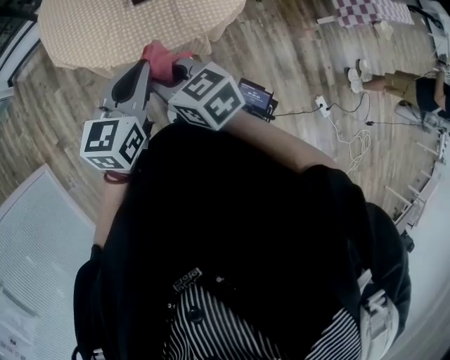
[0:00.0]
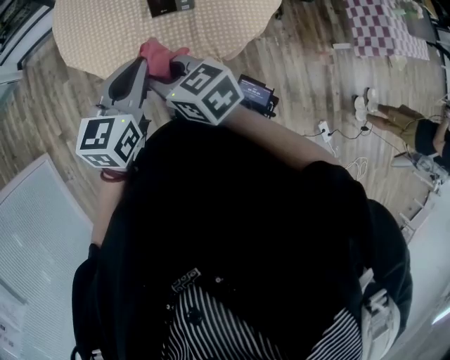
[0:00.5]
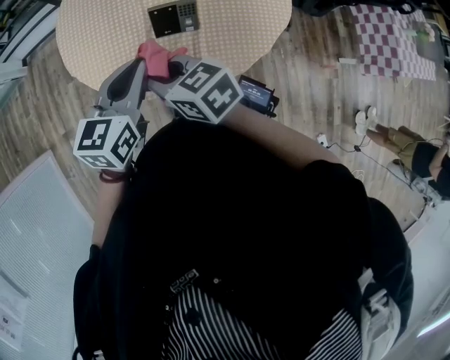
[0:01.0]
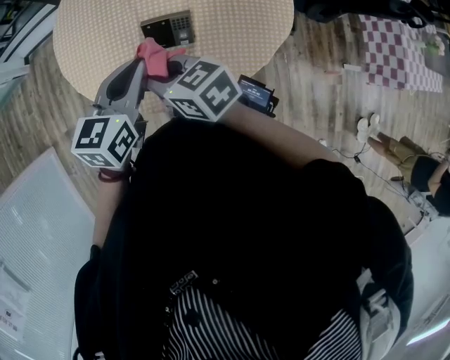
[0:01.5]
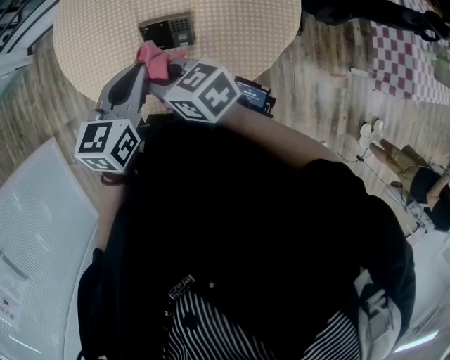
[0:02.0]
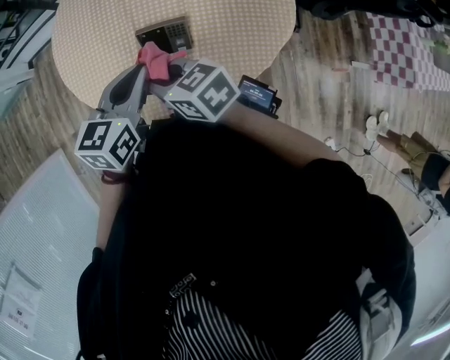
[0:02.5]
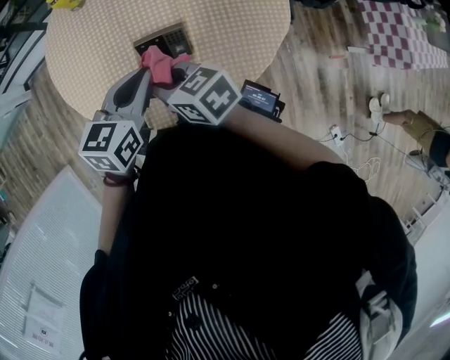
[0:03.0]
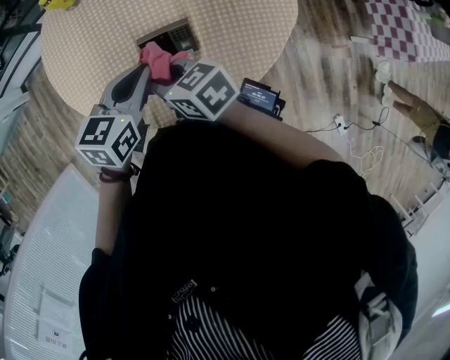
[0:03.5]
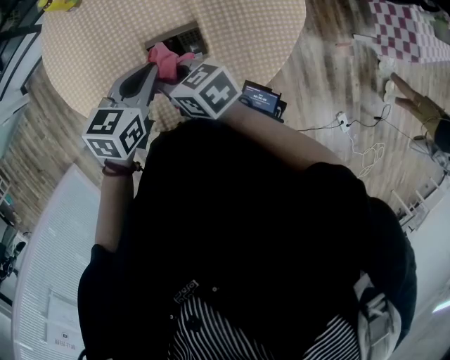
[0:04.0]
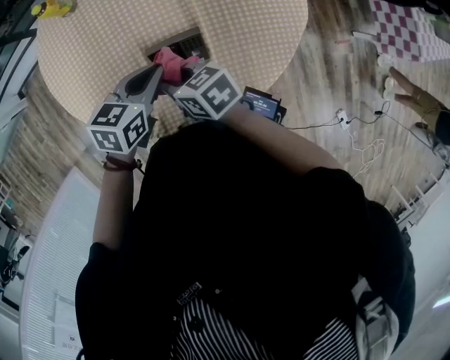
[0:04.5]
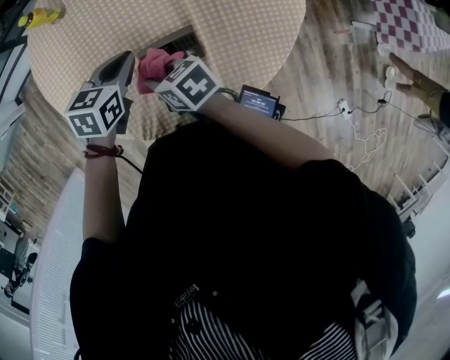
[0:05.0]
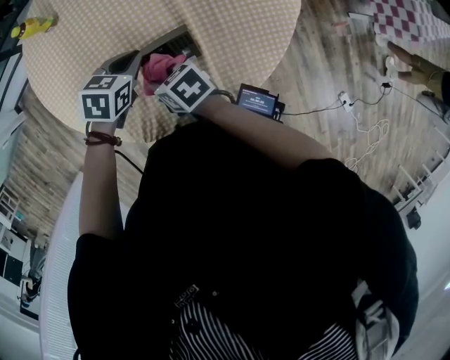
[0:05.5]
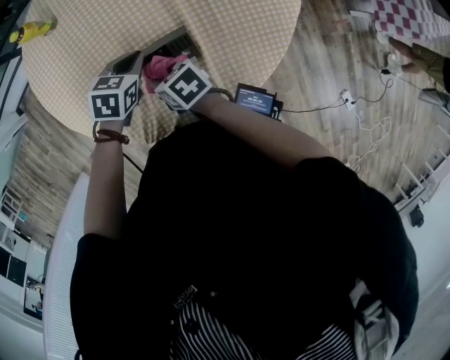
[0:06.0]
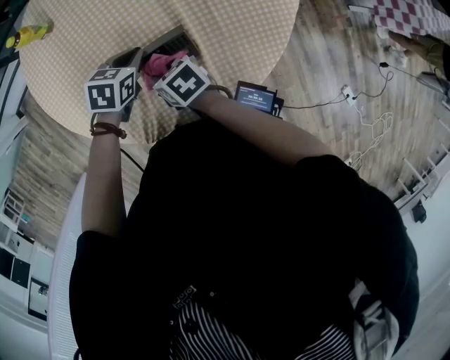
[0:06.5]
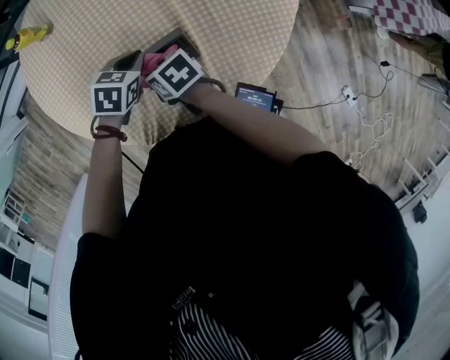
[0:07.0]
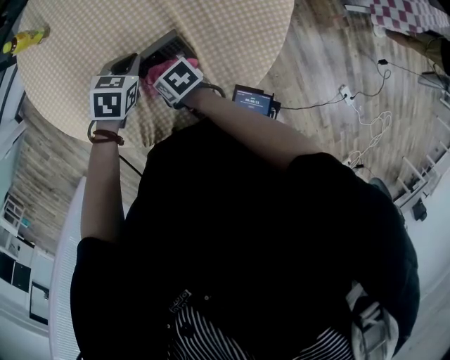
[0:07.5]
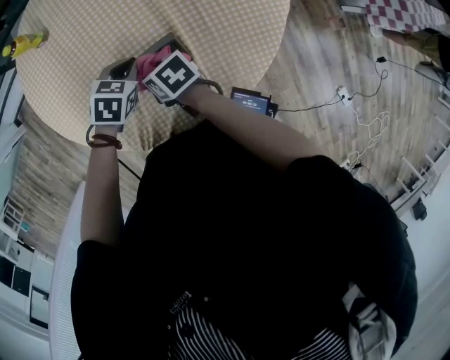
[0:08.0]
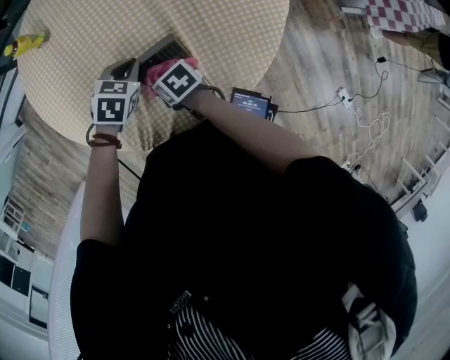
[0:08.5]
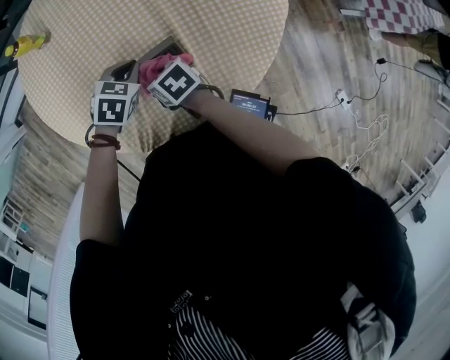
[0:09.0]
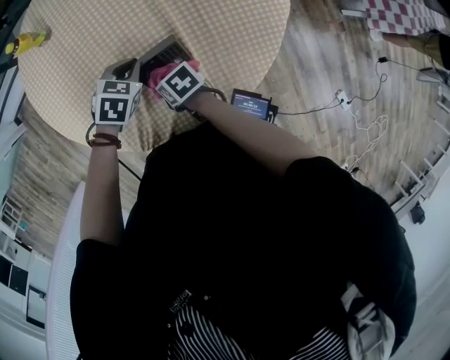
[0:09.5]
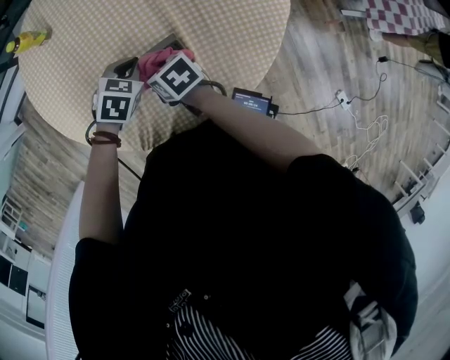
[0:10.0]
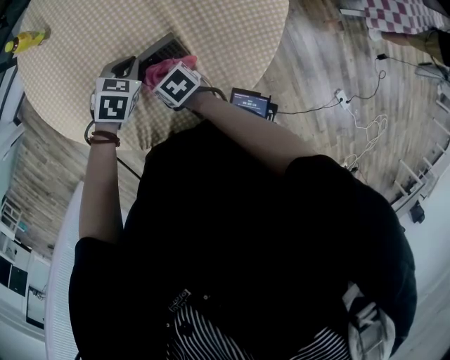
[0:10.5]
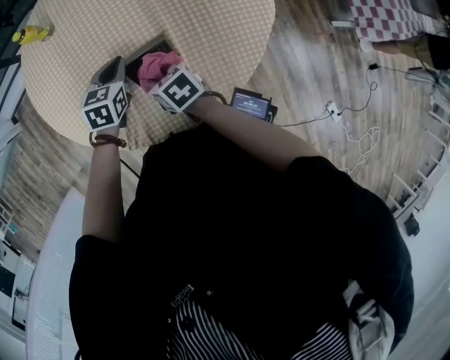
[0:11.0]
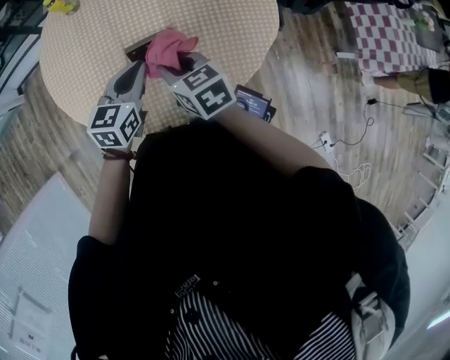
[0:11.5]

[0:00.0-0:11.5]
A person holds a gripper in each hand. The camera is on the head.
0:00.0 to 0:02.0: Both grippers move forward and to the right, roughly 35 cm. The right gripper turns by some 20 degrees.
0:02.0 to 0:04.0: The left gripper travels downward, forward and to the right by some 10 cm, and turns by roughly 20 degrees. Meanwhile the right gripper moves forward and downward, approximately 10 cm.
0:04.0 to 0:06.0: The grippers both shift downward by roughly 15 cm. The left gripper swivels approximately 20 degrees.
0:06.0 to 0:07.5: The right gripper moves downward, about 5 cm.
0:09.5 to 0:11.5: The left gripper shifts approximately 15 cm upward, and tips its fingers upward by approximately 40 degrees. The right gripper moves up and down over some 20 cm, changing direction 2 times, and swivels approximately 40 degrees.

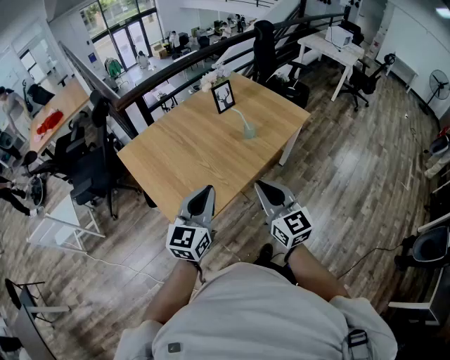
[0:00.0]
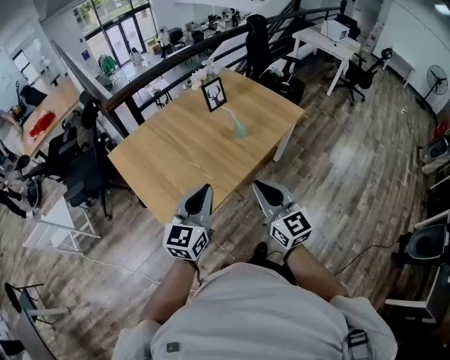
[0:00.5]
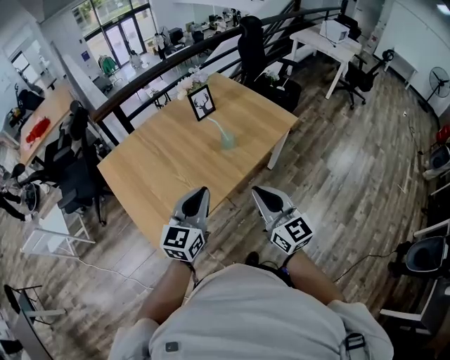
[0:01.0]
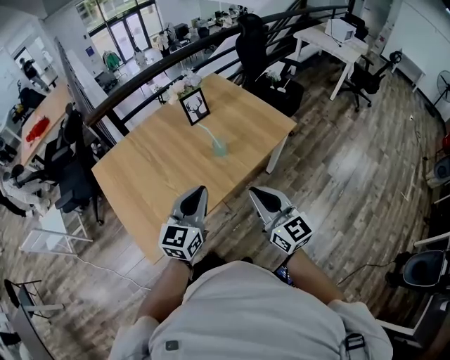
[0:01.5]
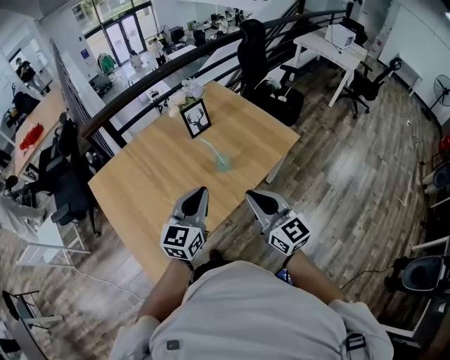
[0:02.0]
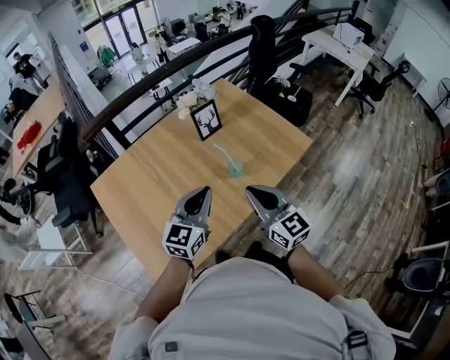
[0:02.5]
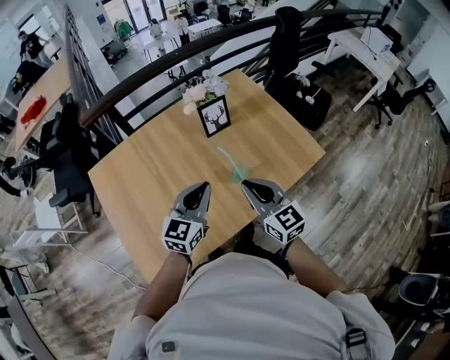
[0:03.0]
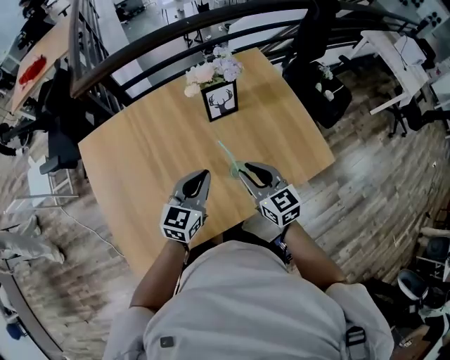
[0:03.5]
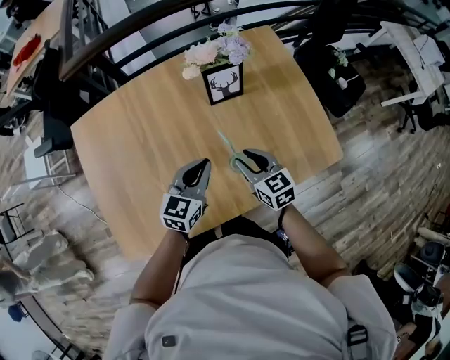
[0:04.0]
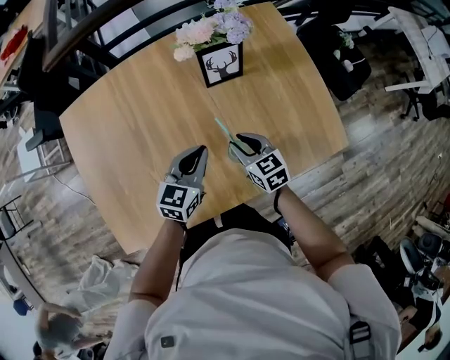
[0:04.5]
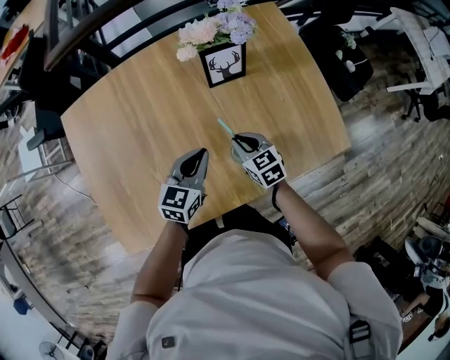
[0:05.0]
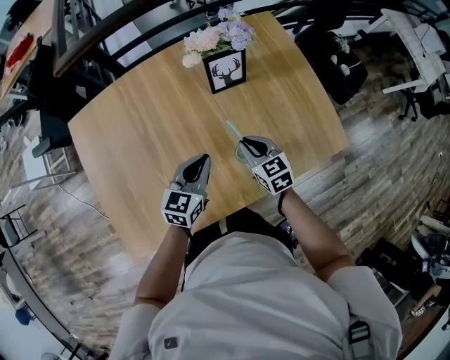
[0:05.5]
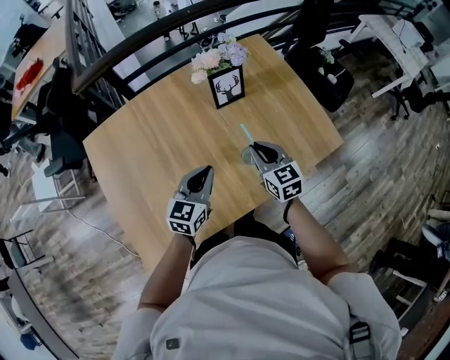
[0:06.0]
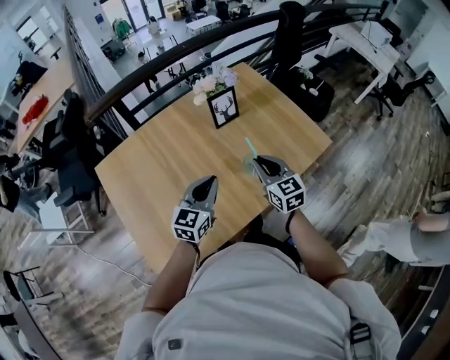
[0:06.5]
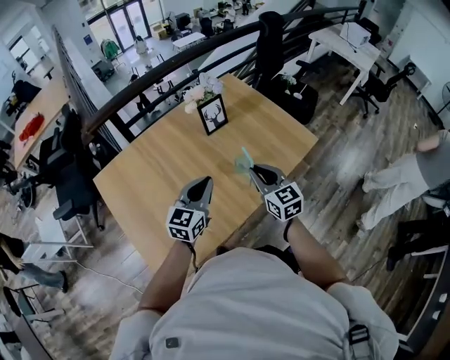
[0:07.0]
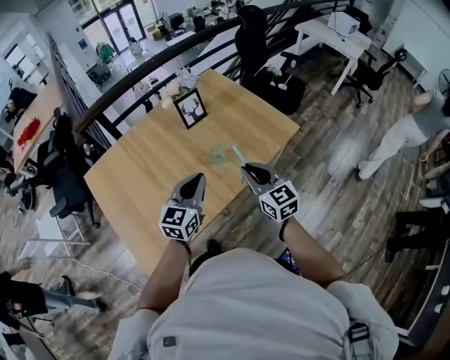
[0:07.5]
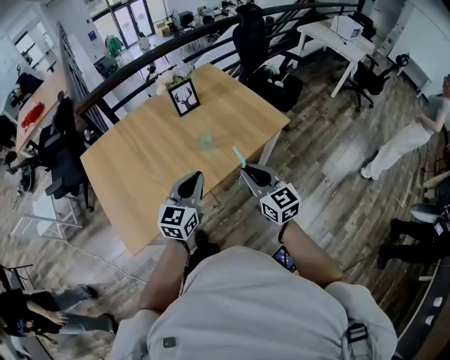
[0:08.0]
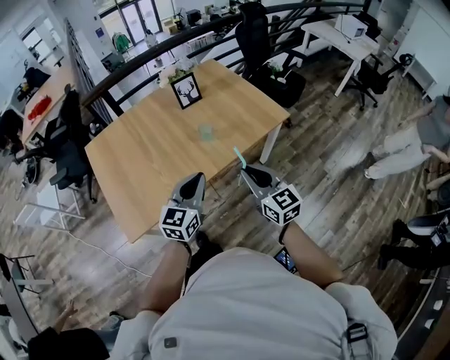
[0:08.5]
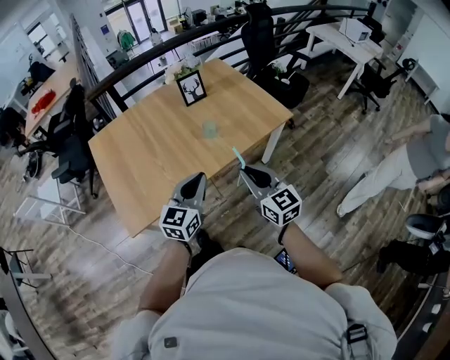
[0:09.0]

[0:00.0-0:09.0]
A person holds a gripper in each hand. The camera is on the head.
0:00.0 to 0:02.0: Both grippers travel together forward and to the right, approximately 30 cm.
0:02.0 to 0:04.5: Both grippers move forward and downward, about 40 cm. The right gripper tips its fingers downward by some 40 degrees, and opens. The left gripper swivels about 30 degrees.
0:04.5 to 0:07.0: The two grippers go some 25 cm upward and backward. The right gripper changes its angle by some 30 degrees. The left gripper turns by about 20 degrees.
0:07.0 to 0:09.0: Both grippers move backward and to the right, some 30 cm.

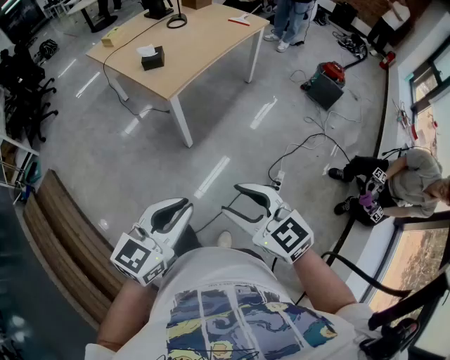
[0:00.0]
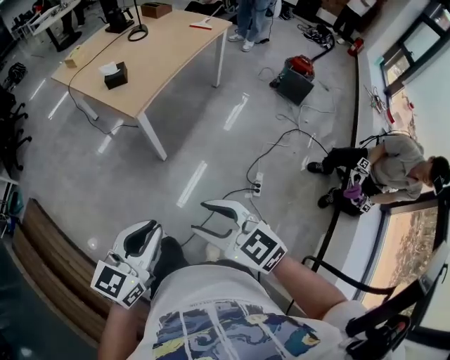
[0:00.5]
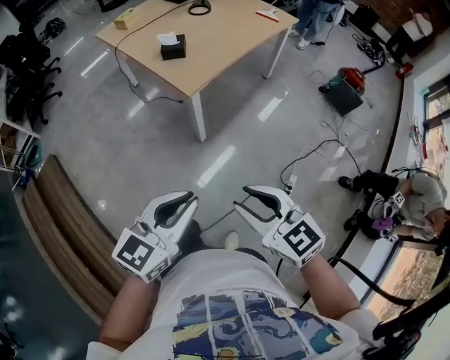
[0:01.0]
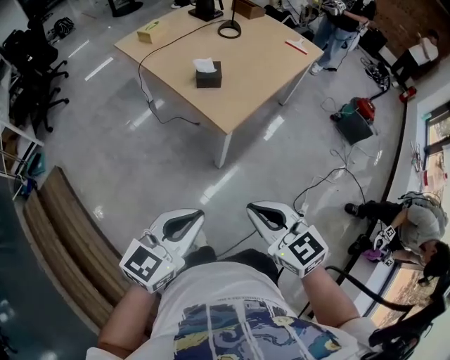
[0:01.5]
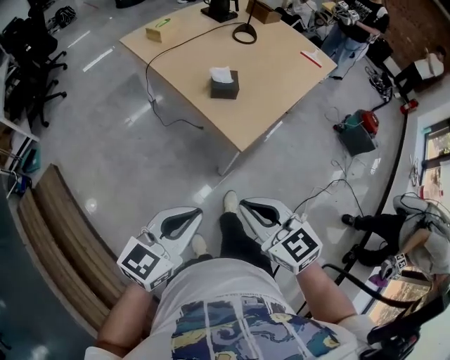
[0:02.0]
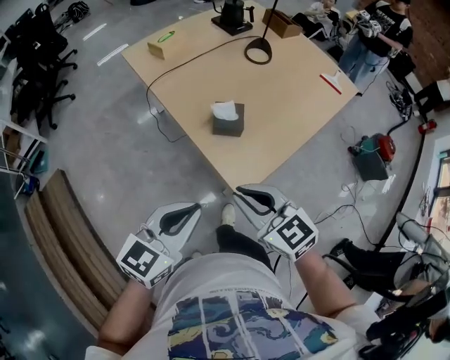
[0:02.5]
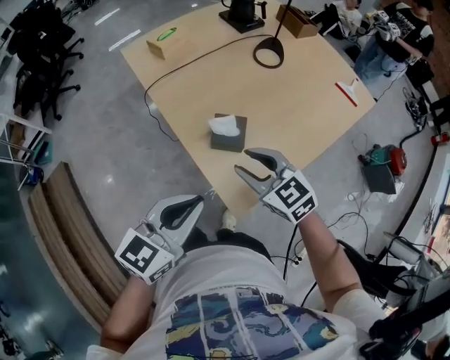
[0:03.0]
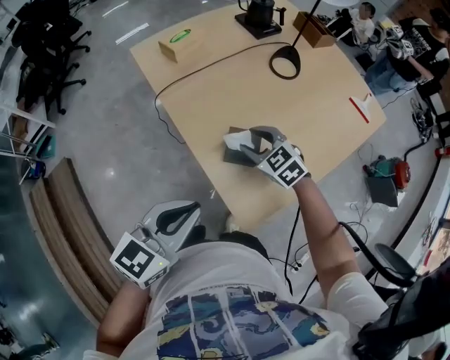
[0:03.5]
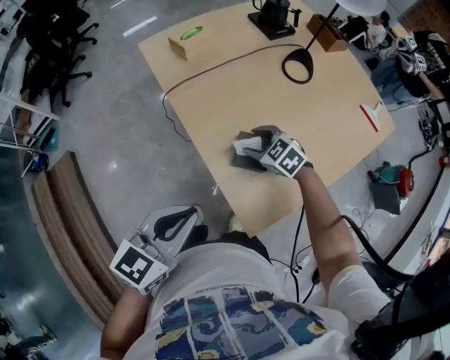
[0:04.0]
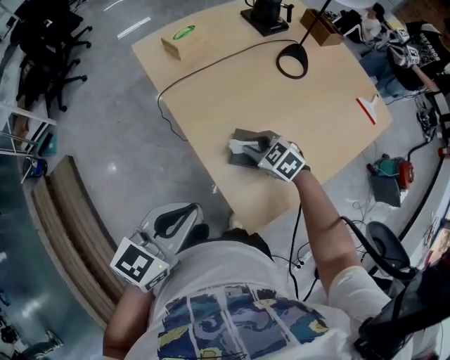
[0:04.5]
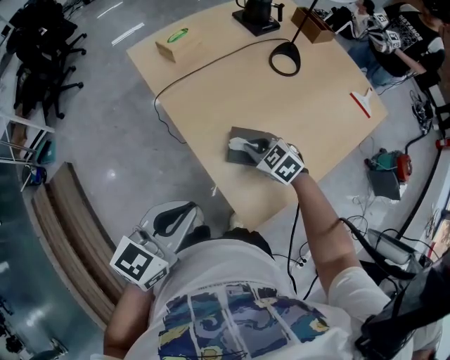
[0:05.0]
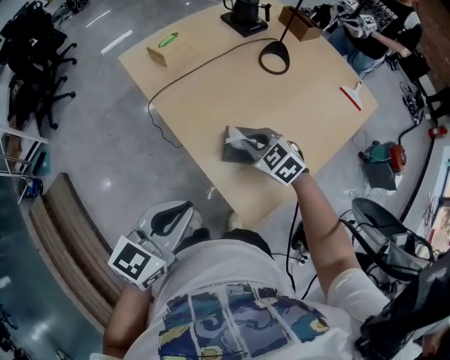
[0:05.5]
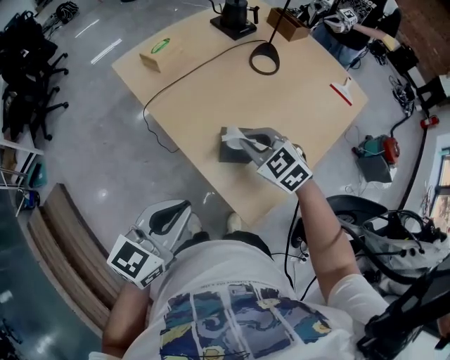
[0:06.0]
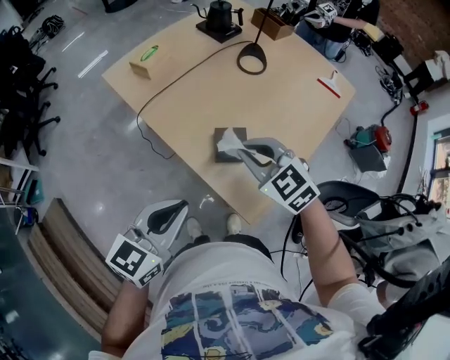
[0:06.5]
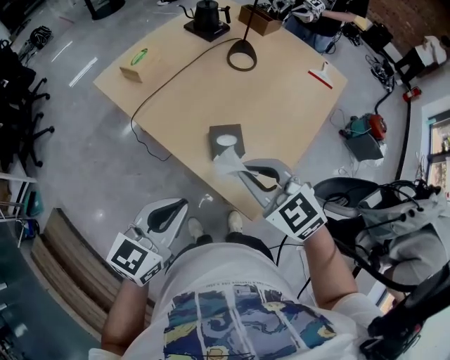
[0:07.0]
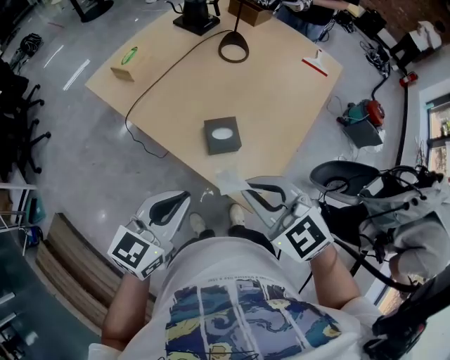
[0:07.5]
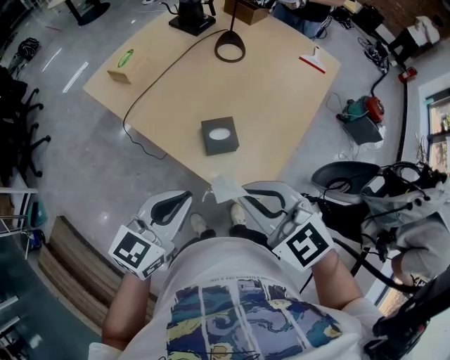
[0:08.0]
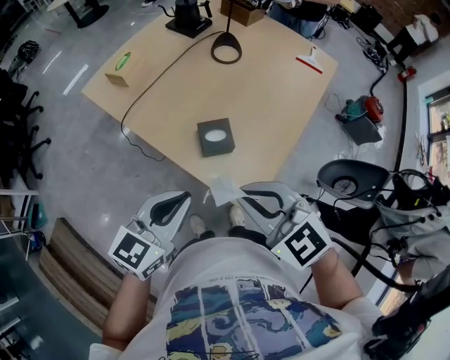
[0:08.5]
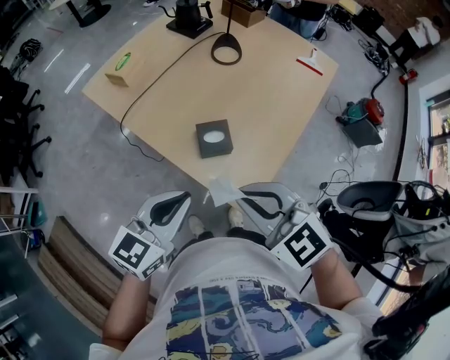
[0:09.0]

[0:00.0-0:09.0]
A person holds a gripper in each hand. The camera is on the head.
0:00.0 to 0:02.0: Both grippers move forward and to the left, some 40 cm. The right gripper closes up.
0:02.0 to 0:04.5: The grippers both shift forward by roughly 40 cm. The right gripper swivels about 40 degrees, and opens, then closes once more.
0:04.5 to 0:07.0: The right gripper shifts approximately 25 cm upward and backward, and swivels approximately 30 degrees.
0:07.0 to 0:09.0: The right gripper goes some 5 cm backward.
